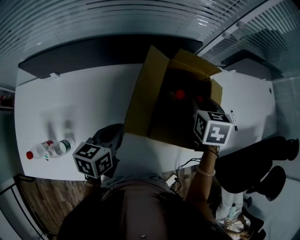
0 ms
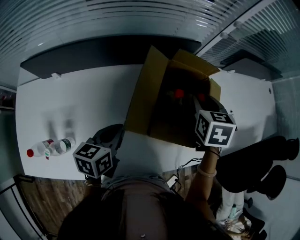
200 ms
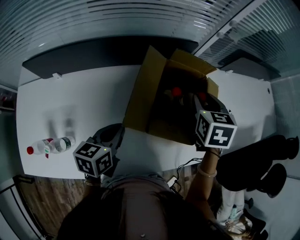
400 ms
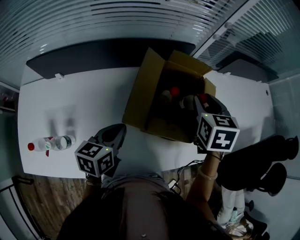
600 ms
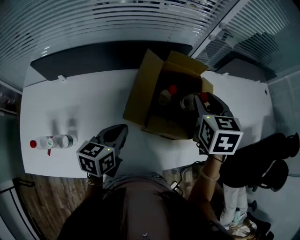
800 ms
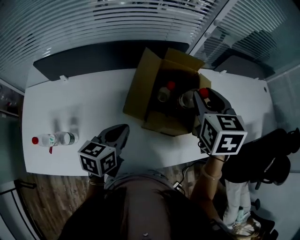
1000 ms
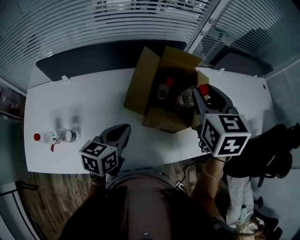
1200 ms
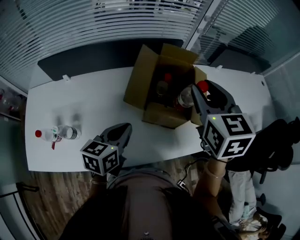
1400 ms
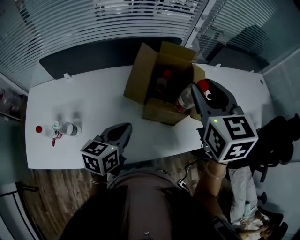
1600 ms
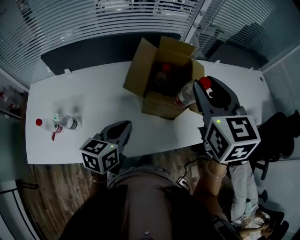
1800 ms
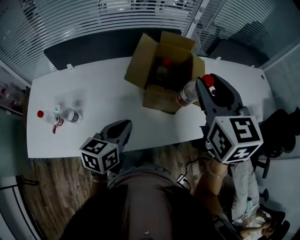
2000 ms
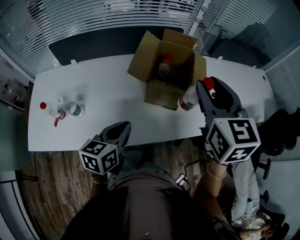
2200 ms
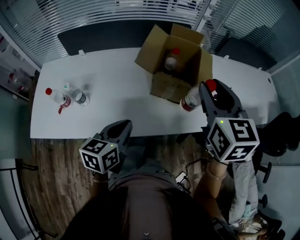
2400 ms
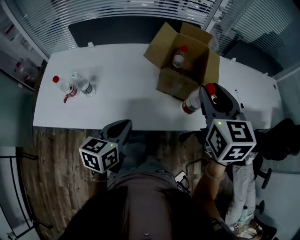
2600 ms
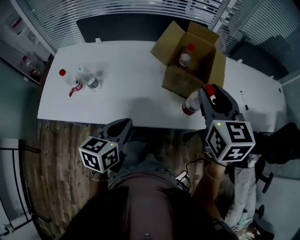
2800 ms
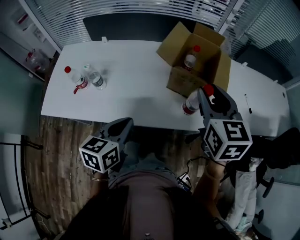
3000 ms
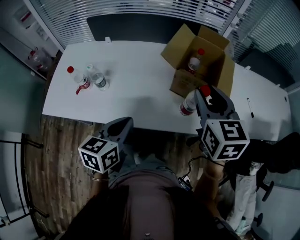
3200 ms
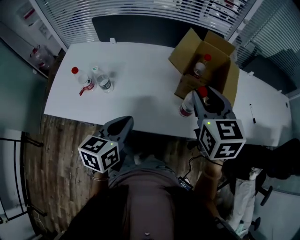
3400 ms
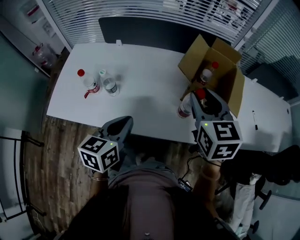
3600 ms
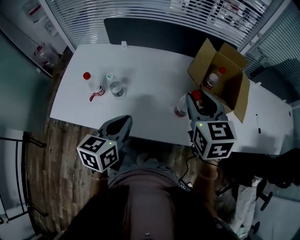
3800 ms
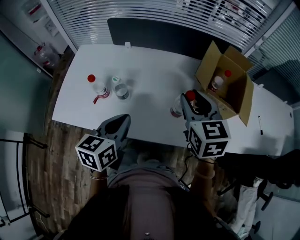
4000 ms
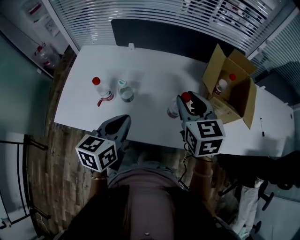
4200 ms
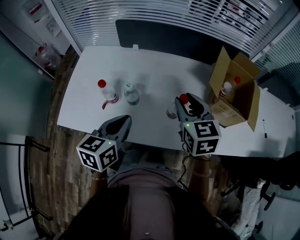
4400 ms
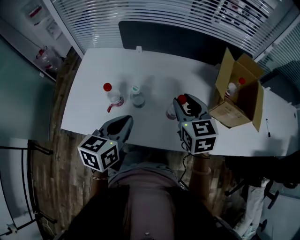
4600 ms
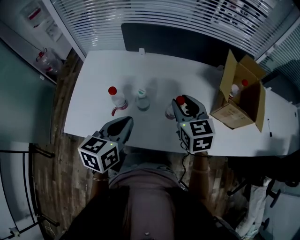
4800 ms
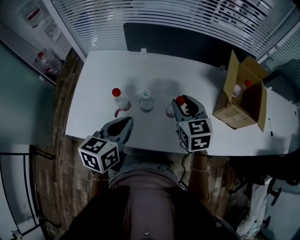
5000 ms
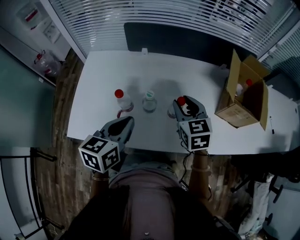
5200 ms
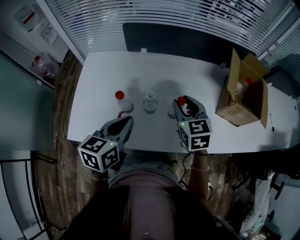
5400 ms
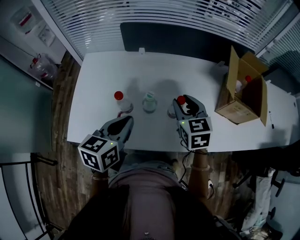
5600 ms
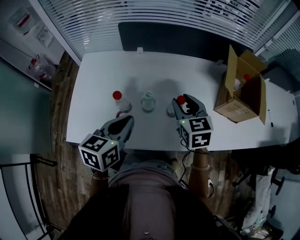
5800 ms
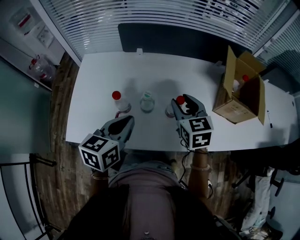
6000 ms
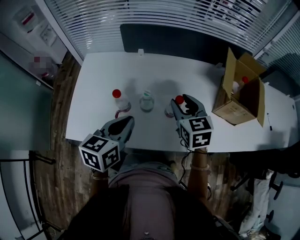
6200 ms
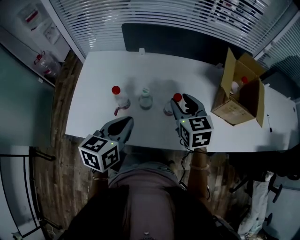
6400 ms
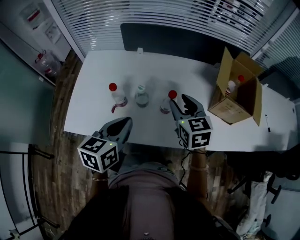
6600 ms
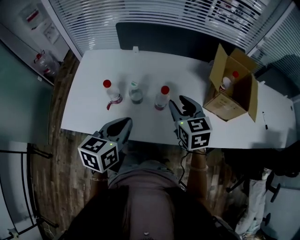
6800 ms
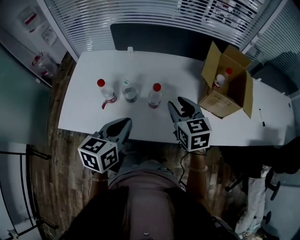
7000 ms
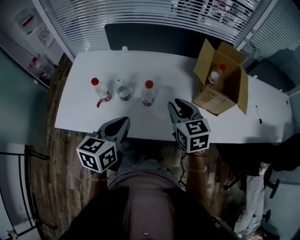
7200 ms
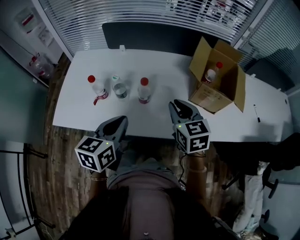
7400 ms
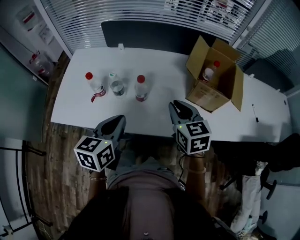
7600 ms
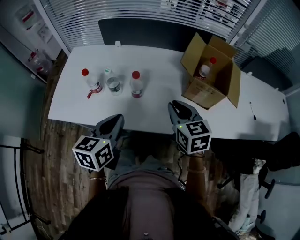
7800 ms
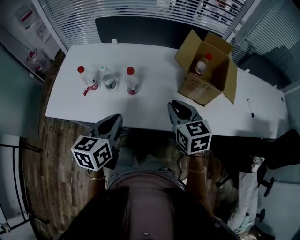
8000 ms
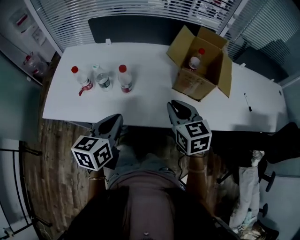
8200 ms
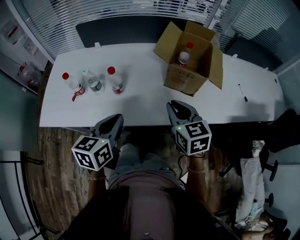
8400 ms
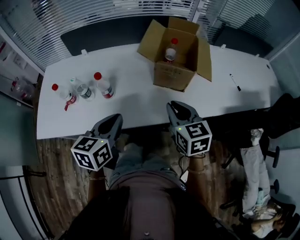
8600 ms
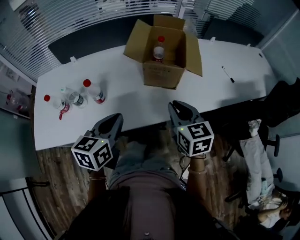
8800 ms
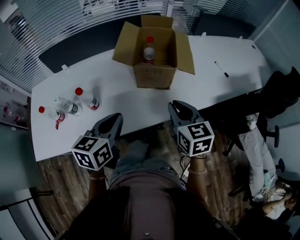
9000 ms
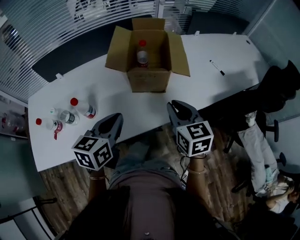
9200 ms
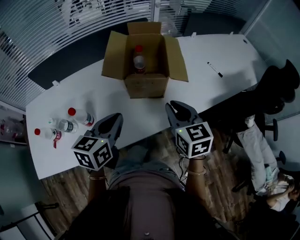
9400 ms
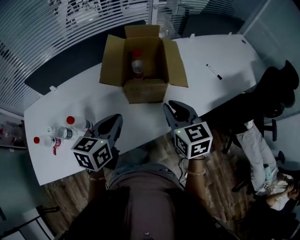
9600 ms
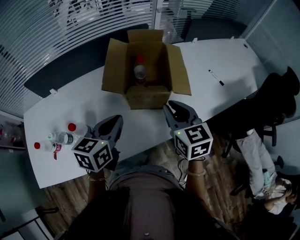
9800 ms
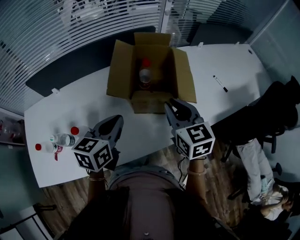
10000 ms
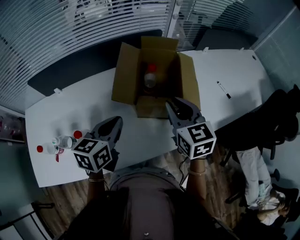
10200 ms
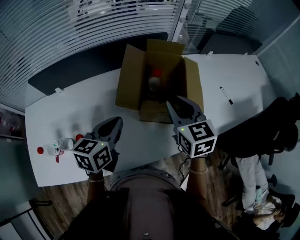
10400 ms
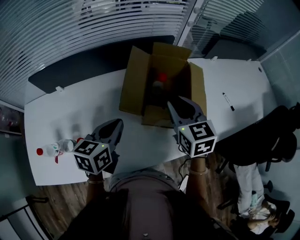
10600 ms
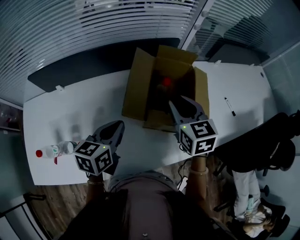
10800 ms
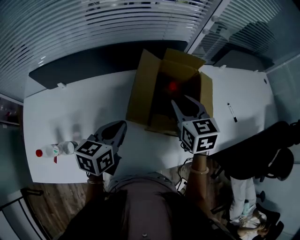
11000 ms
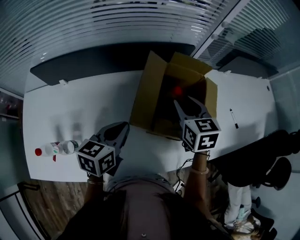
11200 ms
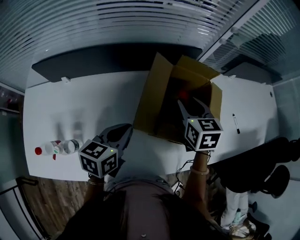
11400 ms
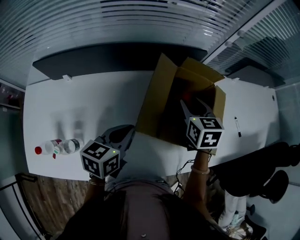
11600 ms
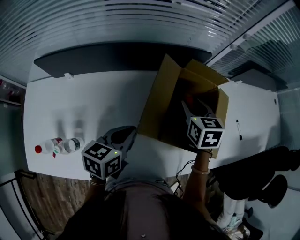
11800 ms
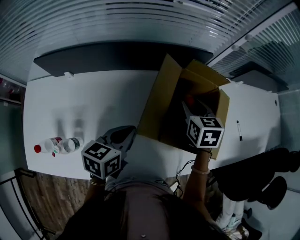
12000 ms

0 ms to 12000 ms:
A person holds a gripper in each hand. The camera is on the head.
0 ms to 1600 ms: The right gripper goes about 25 cm upward and backward, and rotates about 30 degrees; the left gripper is displaced backward, upward and to the right by some 15 cm.
1600 ms to 3000 ms: The right gripper moves backward and downward, about 15 cm. Meanwhile the left gripper moves backward, about 20 cm.
3000 ms to 4400 ms: Both grippers travel together to the left, approximately 25 cm.
4400 ms to 6000 ms: The left gripper moves to the left, about 10 cm. Meanwhile the right gripper moves to the left and downward, roughly 10 cm.
6000 ms to 7600 ms: Both grippers travel together to the right and backward, some 15 cm. The right gripper closes its fingers.
7600 ms to 9000 ms: Both grippers move to the right, roughly 20 cm. The left gripper swivels roughly 20 degrees. Meanwhile the right gripper turns by approximately 20 degrees.
9000 ms to 10400 ms: Both grippers travel together forward, some 20 cm.
10400 ms to 12000 ms: The right gripper moves forward and downward, approximately 20 cm. The left gripper shifts approximately 10 cm forward and downward.

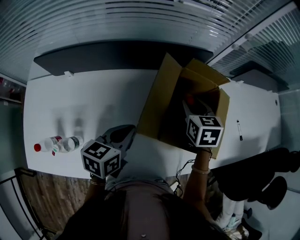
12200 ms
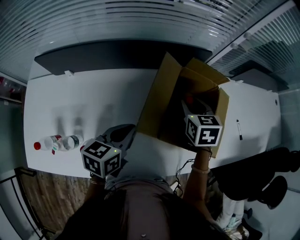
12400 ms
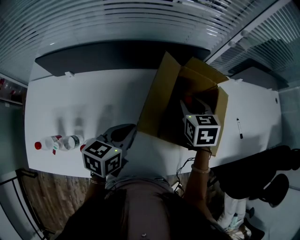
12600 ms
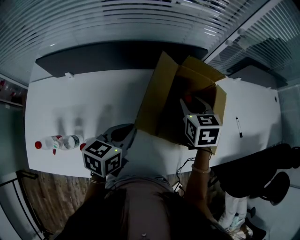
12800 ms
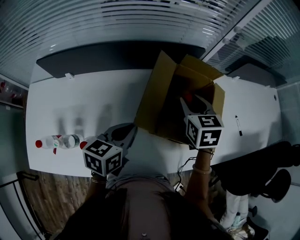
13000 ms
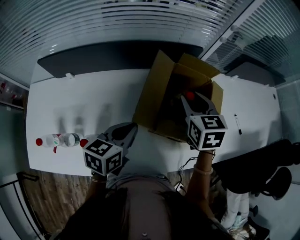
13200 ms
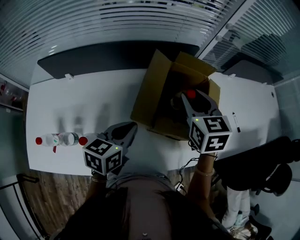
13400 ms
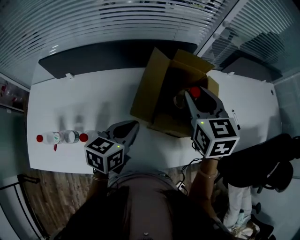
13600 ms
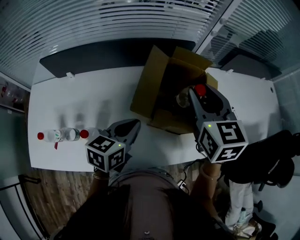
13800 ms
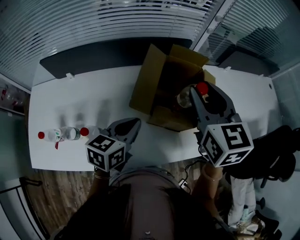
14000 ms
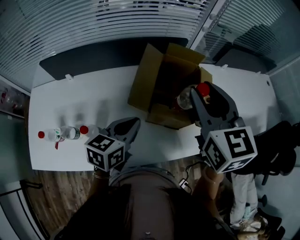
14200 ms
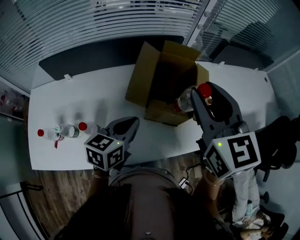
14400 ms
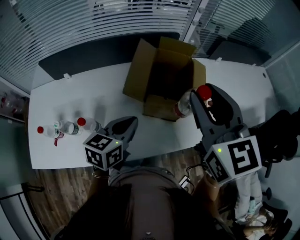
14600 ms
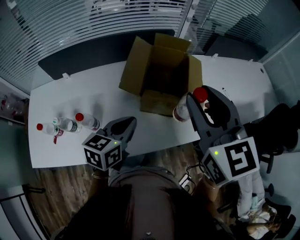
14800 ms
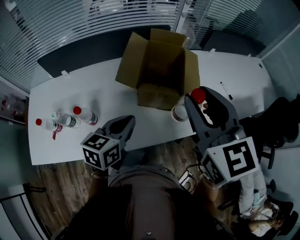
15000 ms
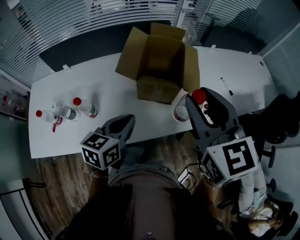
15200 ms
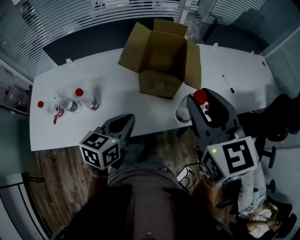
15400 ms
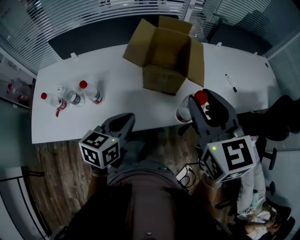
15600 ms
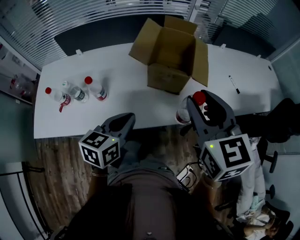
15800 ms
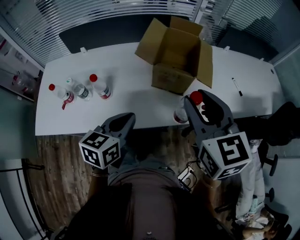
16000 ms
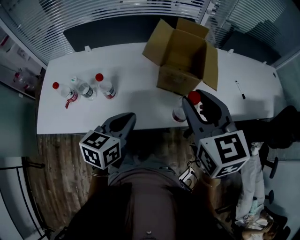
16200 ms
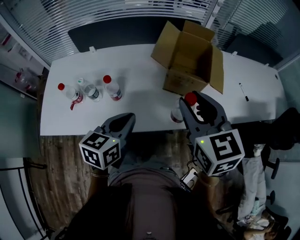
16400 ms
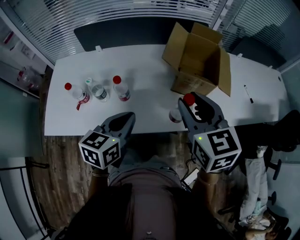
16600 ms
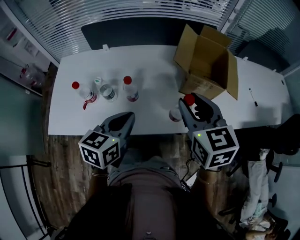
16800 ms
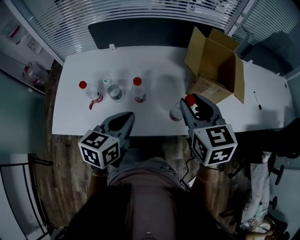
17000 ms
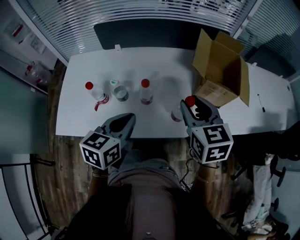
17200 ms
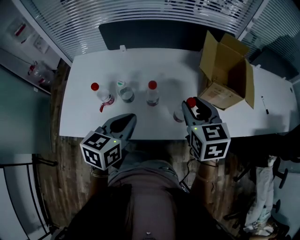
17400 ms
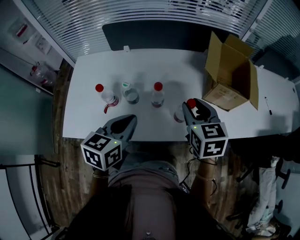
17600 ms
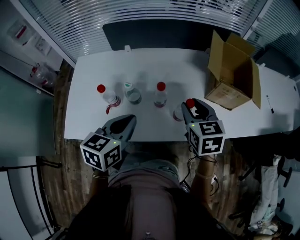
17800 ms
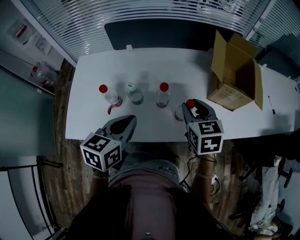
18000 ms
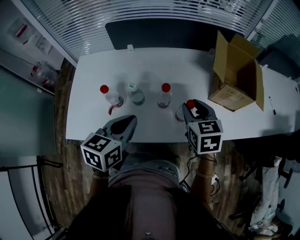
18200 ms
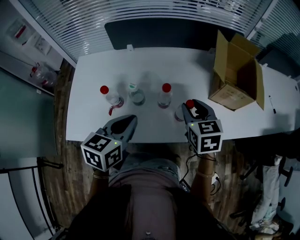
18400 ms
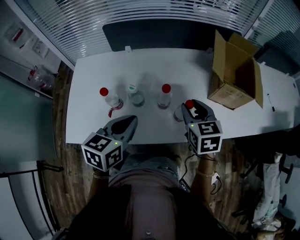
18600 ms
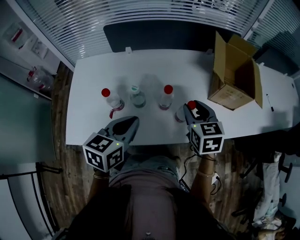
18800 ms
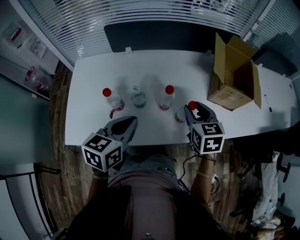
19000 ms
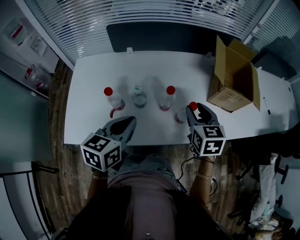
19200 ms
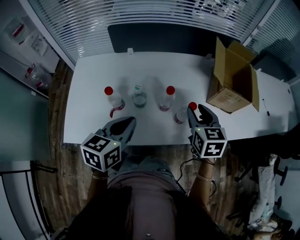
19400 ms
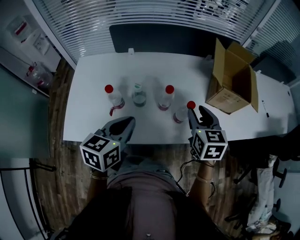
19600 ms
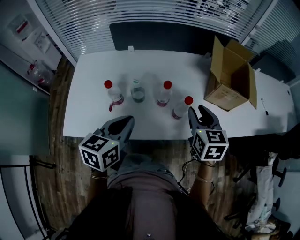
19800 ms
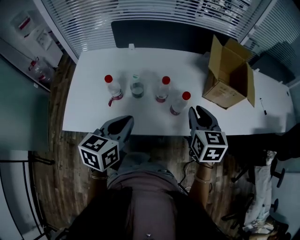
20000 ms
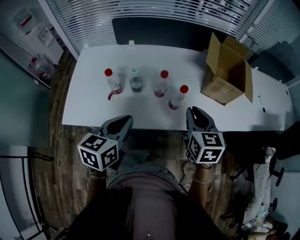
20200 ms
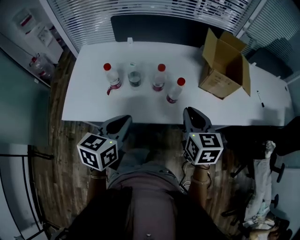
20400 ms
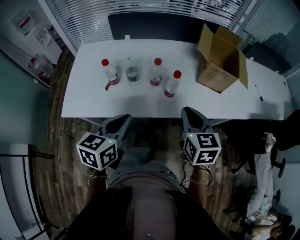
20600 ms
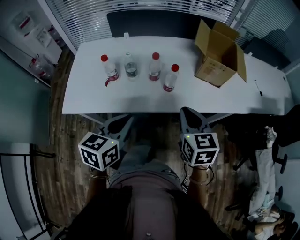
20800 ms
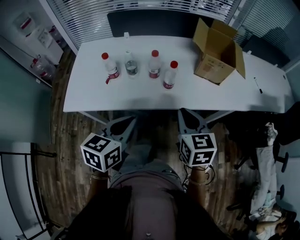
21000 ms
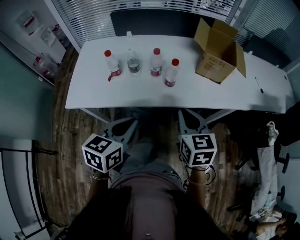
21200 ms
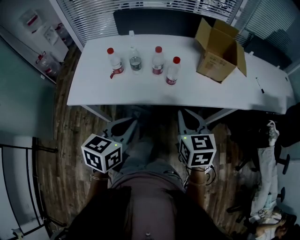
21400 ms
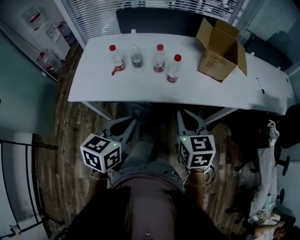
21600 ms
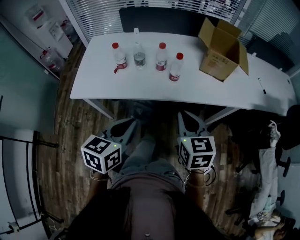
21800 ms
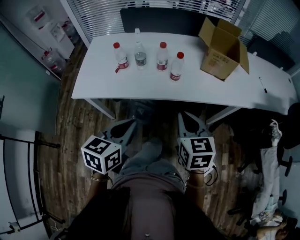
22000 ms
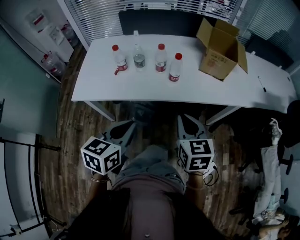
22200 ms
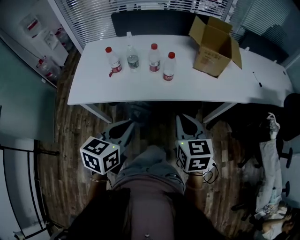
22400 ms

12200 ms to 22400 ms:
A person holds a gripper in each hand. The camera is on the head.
12200 ms to 13600 ms: The left gripper changes place by some 5 cm, while the right gripper moves upward and backward, some 15 cm.
13600 ms to 15200 ms: The left gripper travels backward and to the right by approximately 15 cm. Meanwhile the right gripper is displaced backward and upward by about 25 cm.
15200 ms to 16600 ms: The left gripper shifts about 15 cm to the left and backward. Meanwhile the right gripper moves to the left and downward, some 15 cm.
16600 ms to 18000 ms: The right gripper moves to the left and downward, approximately 20 cm; the left gripper travels to the left by some 20 cm.
18000 ms to 19400 ms: There are only small adjustments of the grippers.
19400 ms to 21000 ms: The right gripper travels backward by about 20 cm, and closes its fingers. The left gripper moves backward and to the right, about 20 cm.
21000 ms to 22400 ms: Both grippers travel together backward, roughly 10 cm.

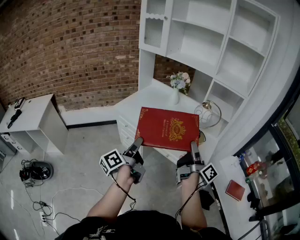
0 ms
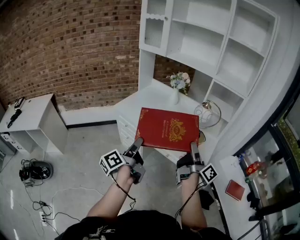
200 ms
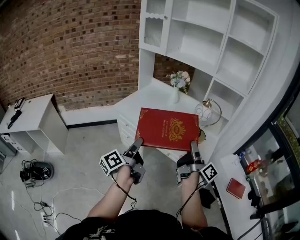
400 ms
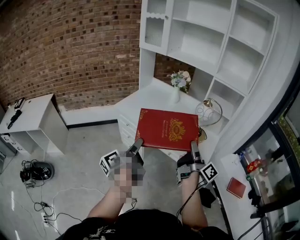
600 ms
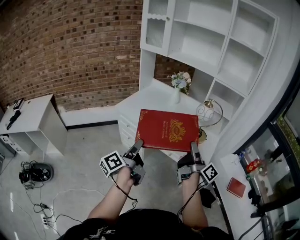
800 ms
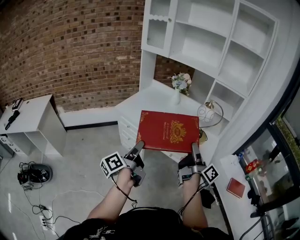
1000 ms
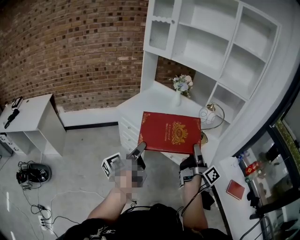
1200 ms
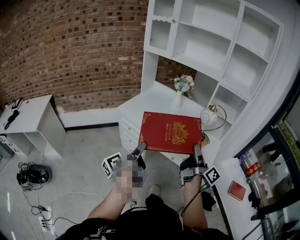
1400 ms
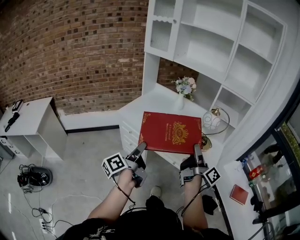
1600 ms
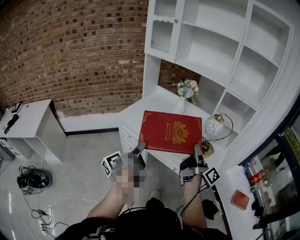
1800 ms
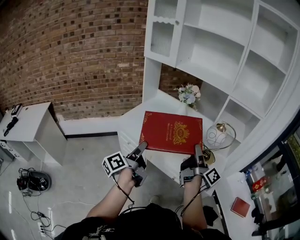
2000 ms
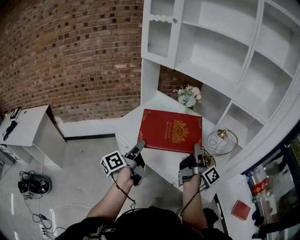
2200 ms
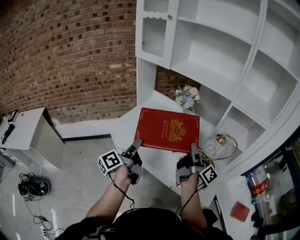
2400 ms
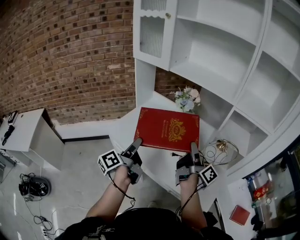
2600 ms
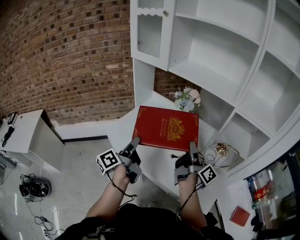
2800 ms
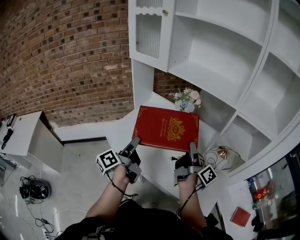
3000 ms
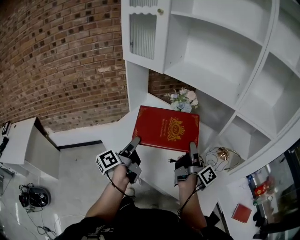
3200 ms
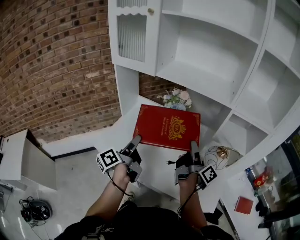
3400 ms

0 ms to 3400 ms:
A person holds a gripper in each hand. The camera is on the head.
0 ms to 1600 ms: The grippers both shift to the left by some 5 cm.
1600 ms to 3400 ms: Both grippers move forward, approximately 40 cm.
